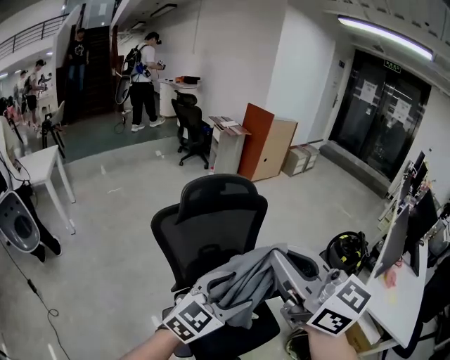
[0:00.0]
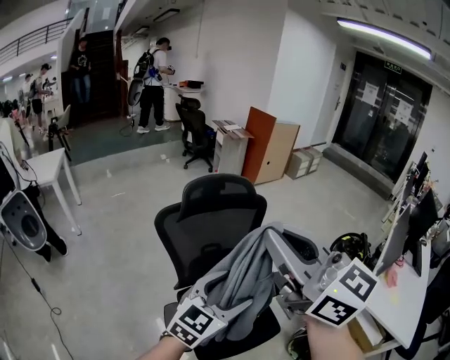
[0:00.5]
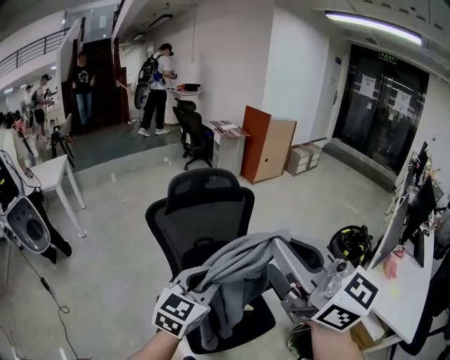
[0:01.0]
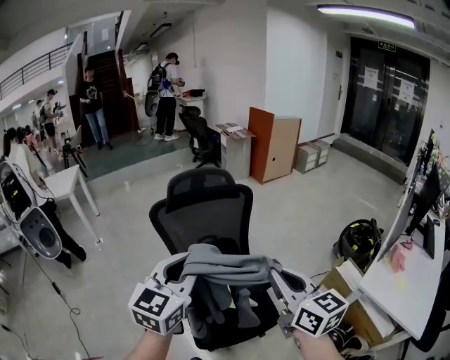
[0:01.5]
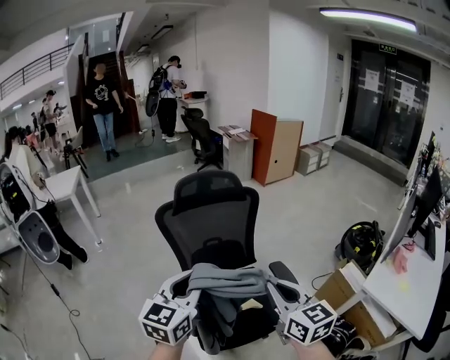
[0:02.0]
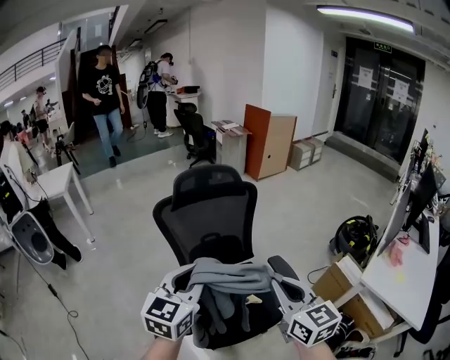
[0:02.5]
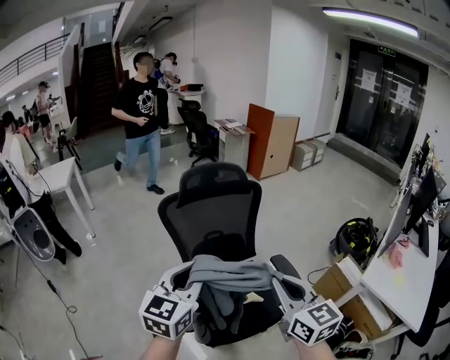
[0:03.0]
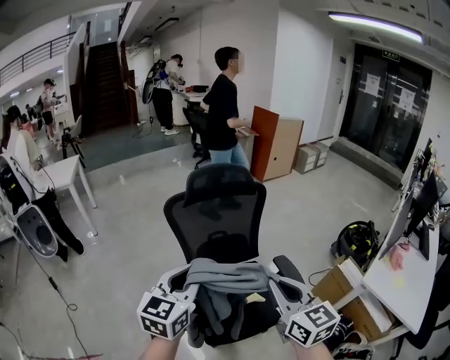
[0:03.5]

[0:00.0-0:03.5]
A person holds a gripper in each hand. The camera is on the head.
0:00.0 to 0:02.0: The right gripper travels downward, to the right and backward by roughly 25 cm; the left gripper shifts about 10 cm backward, changes its angle by approximately 40 degrees, and closes up.
0:02.0 to 0:03.5: Both grippers move to the left, about 5 cm.

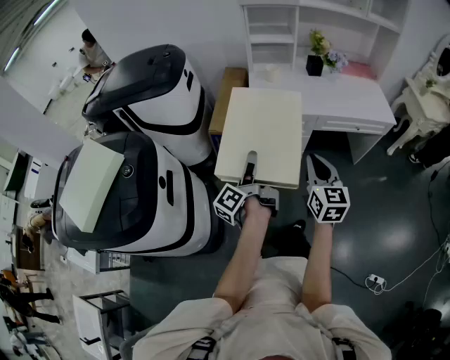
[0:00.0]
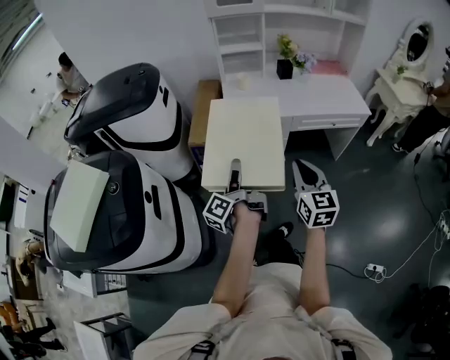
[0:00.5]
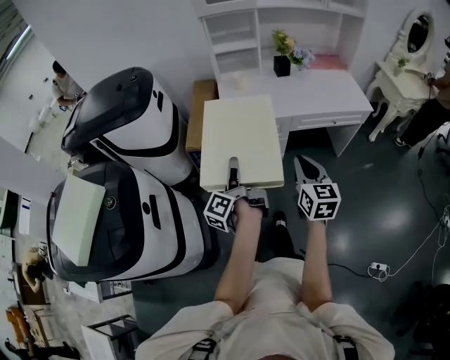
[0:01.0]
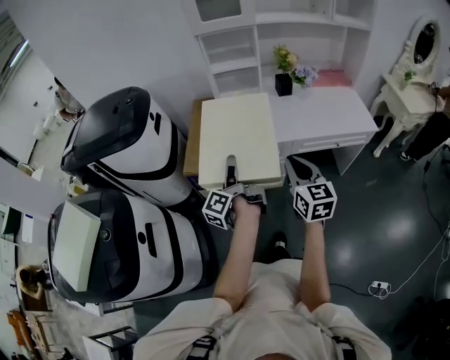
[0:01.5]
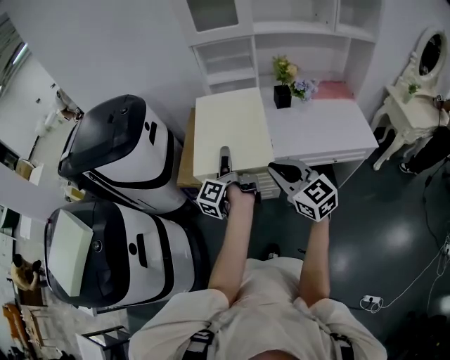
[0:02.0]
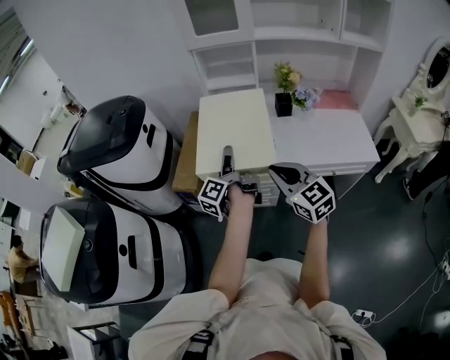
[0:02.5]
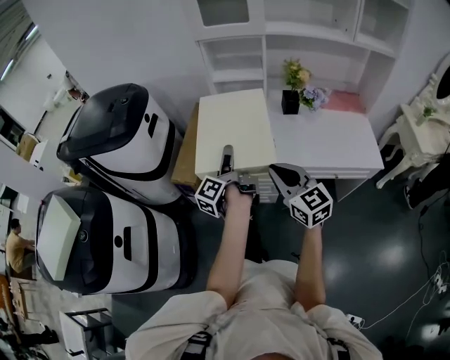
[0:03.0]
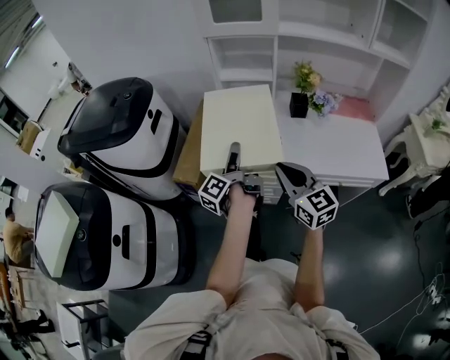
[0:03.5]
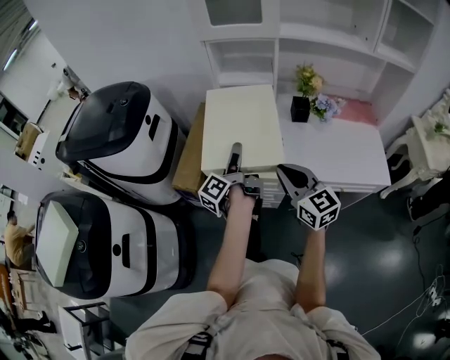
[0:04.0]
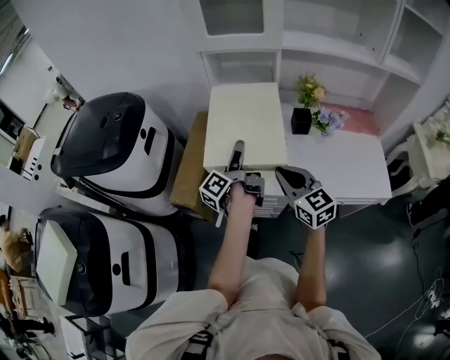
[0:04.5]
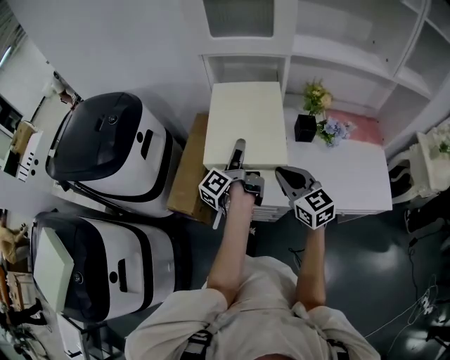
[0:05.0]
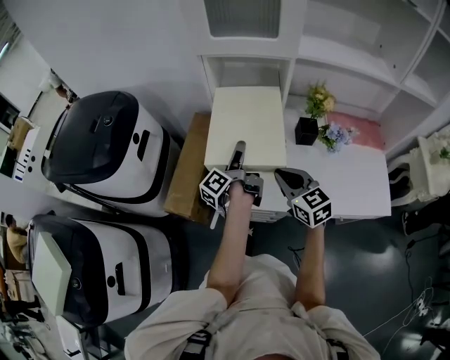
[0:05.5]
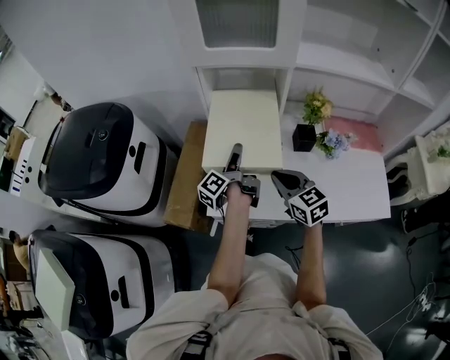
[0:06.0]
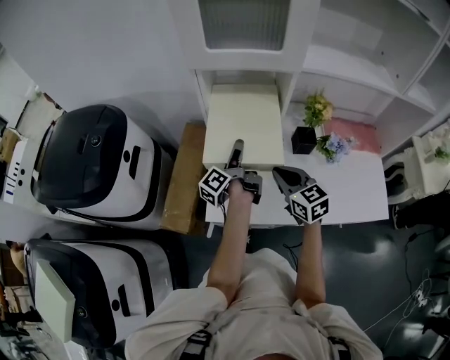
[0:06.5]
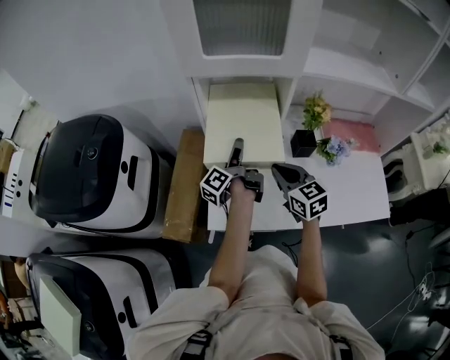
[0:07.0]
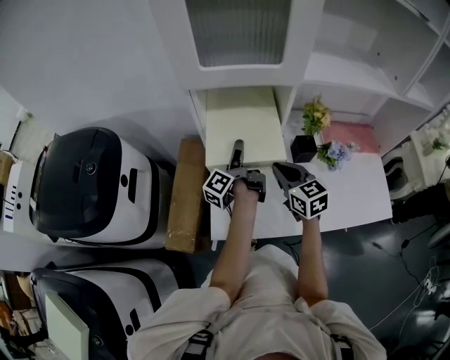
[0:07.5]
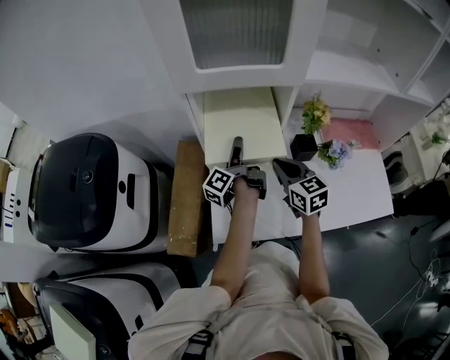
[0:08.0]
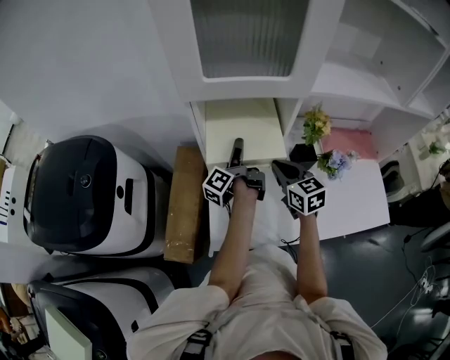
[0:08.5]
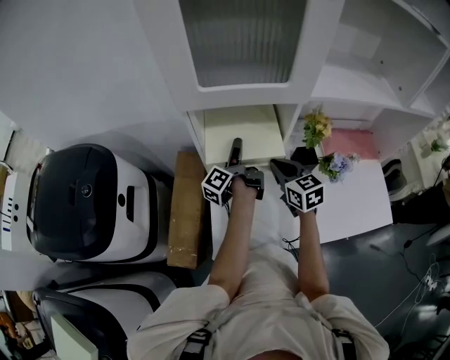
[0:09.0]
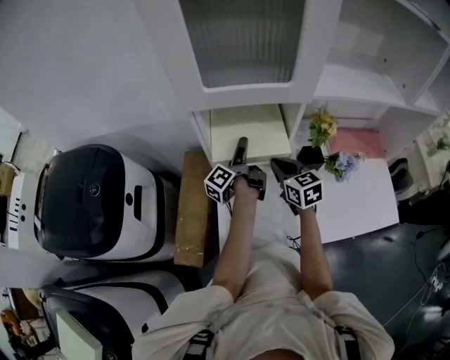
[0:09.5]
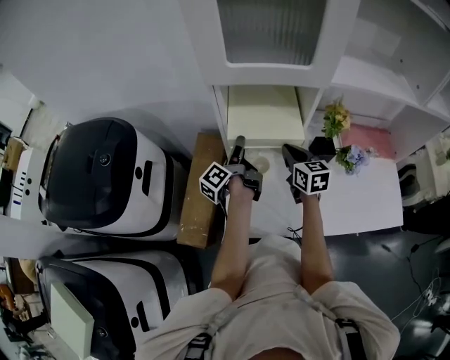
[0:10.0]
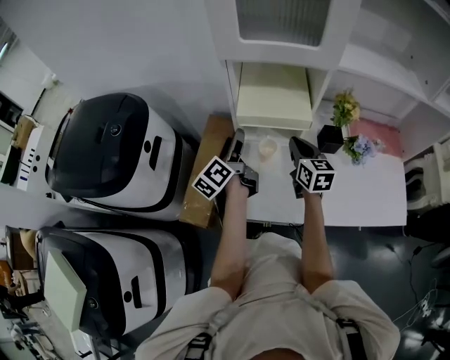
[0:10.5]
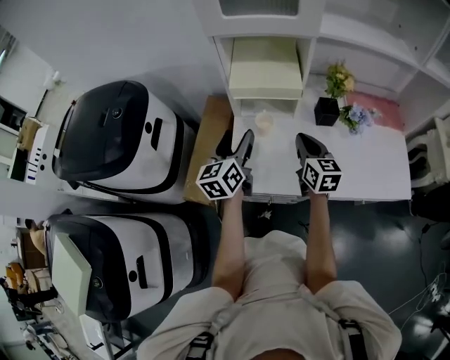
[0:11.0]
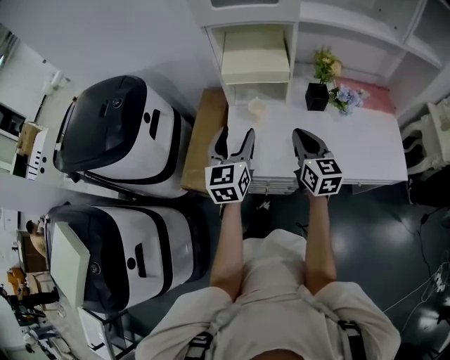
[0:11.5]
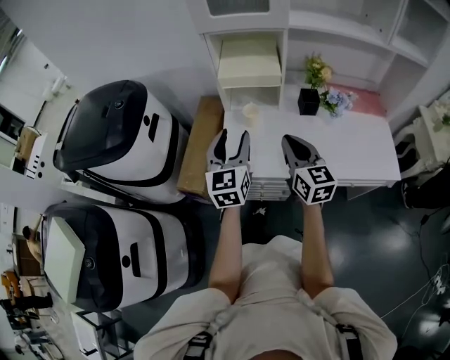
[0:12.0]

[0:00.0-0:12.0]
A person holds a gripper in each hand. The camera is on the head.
0:00.0 to 0:02.0: The left gripper travels forward and to the right by approximately 25 cm. The right gripper travels forward by approximately 15 cm, and turns by roughly 30 degrees.
0:02.0 to 0:04.0: Both grippers travel together forward and to the right, approximately 15 cm.
0:04.0 to 0:06.0: The two grippers go some 20 cm forward.
0:06.0 to 0:08.0: Both grippers move forward, roughly 10 cm.
0:08.0 to 0:10.0: The right gripper moves forward, some 5 cm. Meanwhile the left gripper is displaced to the left by approximately 5 cm.
0:10.0 to 0:12.0: The grippers both shift backward by some 30 cm. The left gripper twists roughly 90 degrees clockwise, seen from behind.

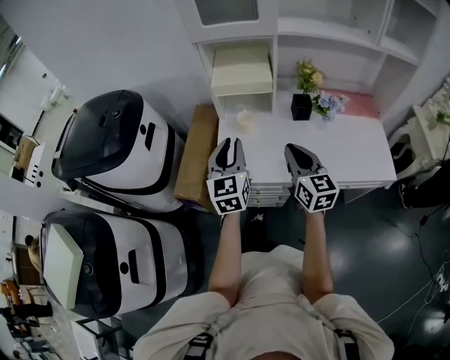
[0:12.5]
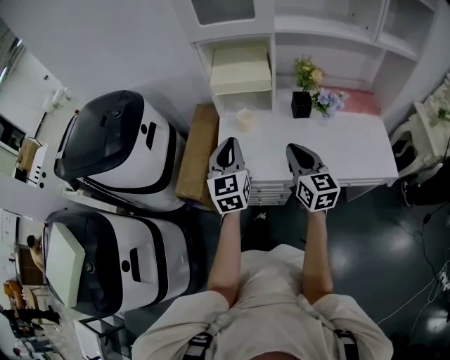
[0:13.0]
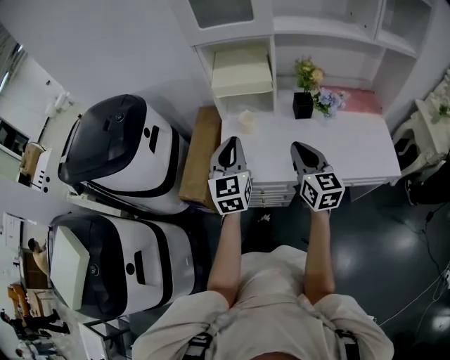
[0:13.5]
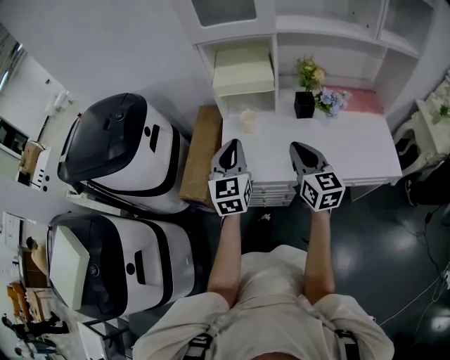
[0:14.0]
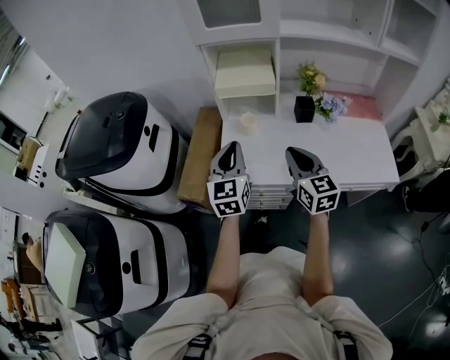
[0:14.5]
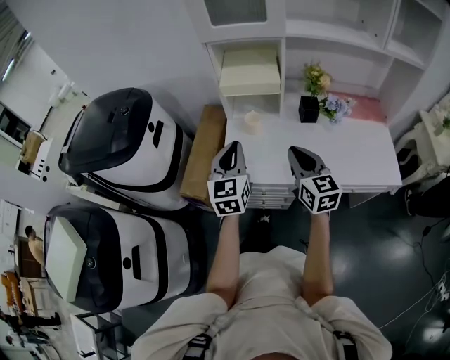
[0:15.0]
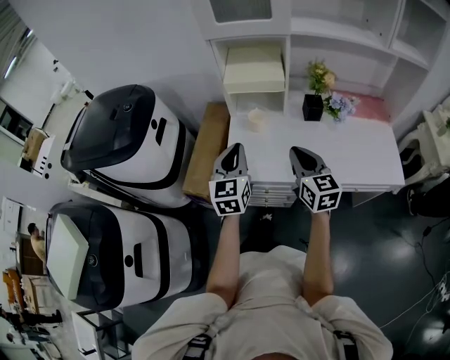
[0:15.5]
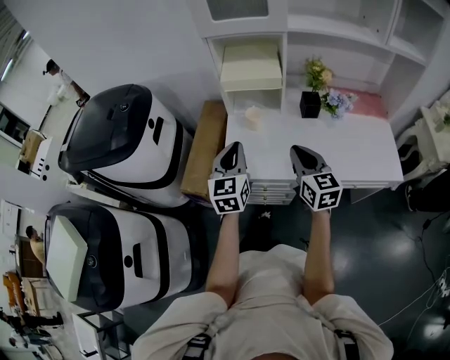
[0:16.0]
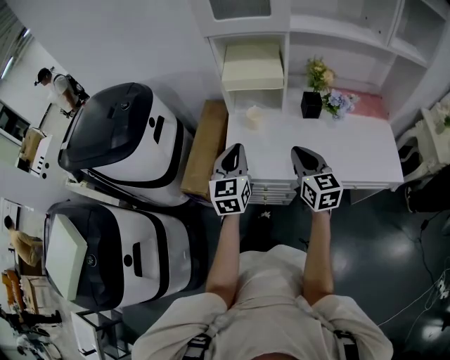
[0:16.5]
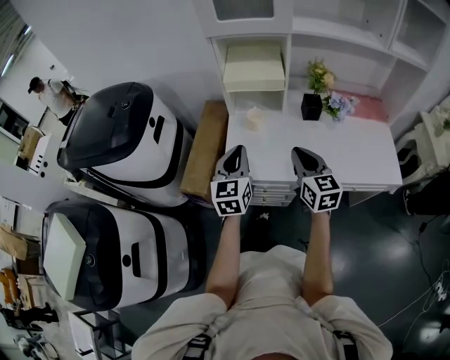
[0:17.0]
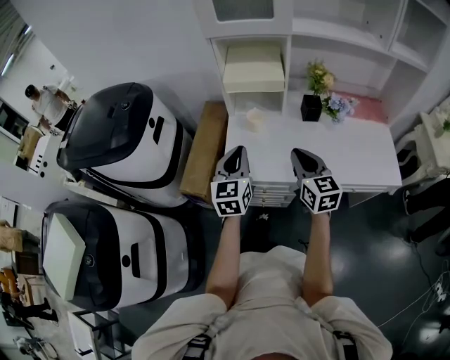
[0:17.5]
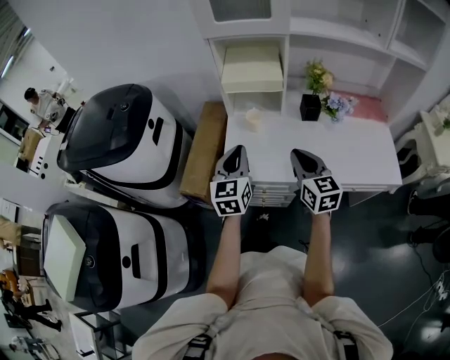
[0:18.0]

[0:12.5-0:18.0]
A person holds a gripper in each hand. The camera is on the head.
0:12.5 to 0:16.0: The grippers move only a little.
0:16.0 to 0:18.0: The two grippers keep their place.

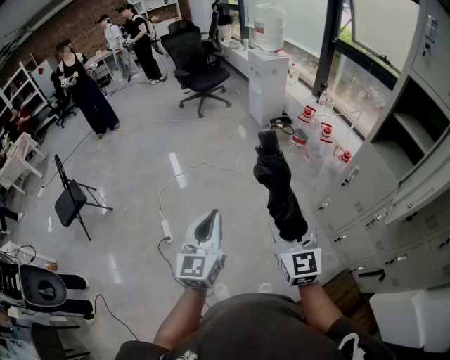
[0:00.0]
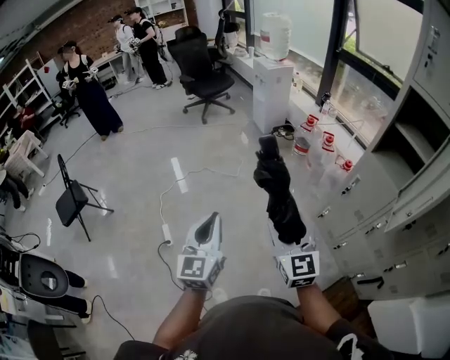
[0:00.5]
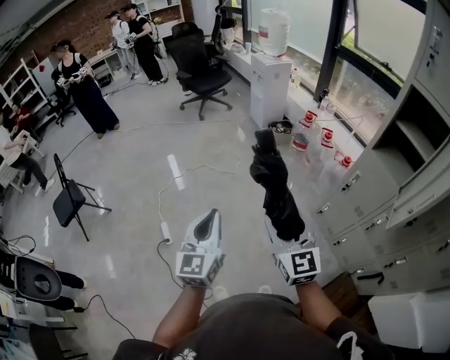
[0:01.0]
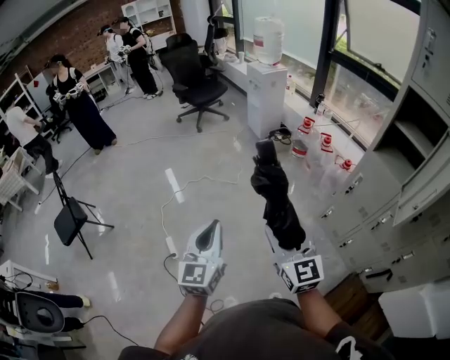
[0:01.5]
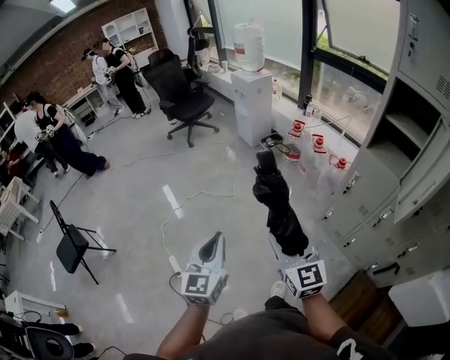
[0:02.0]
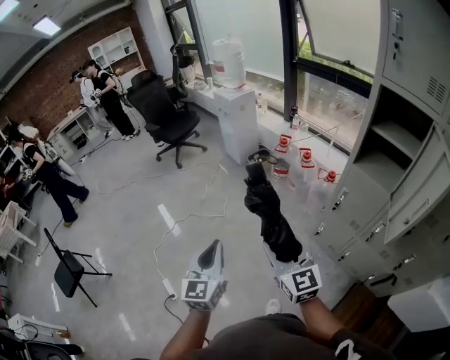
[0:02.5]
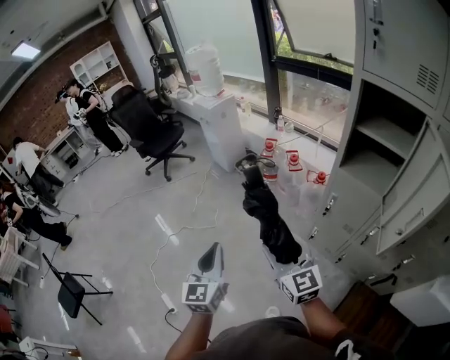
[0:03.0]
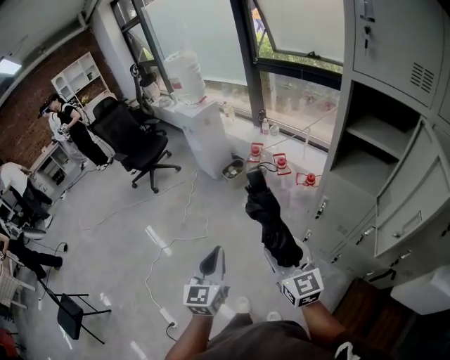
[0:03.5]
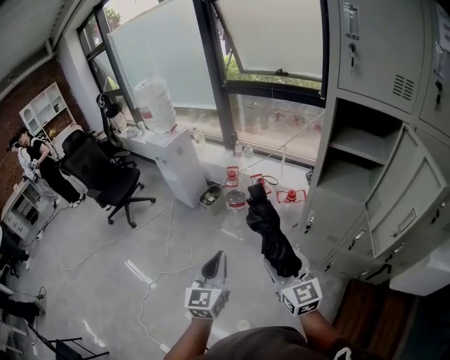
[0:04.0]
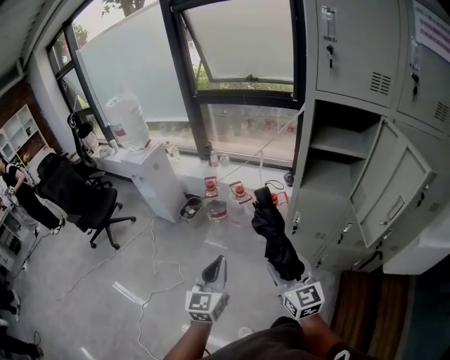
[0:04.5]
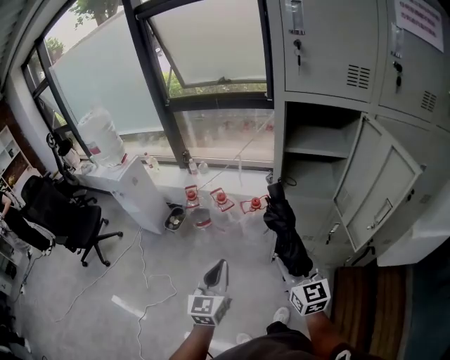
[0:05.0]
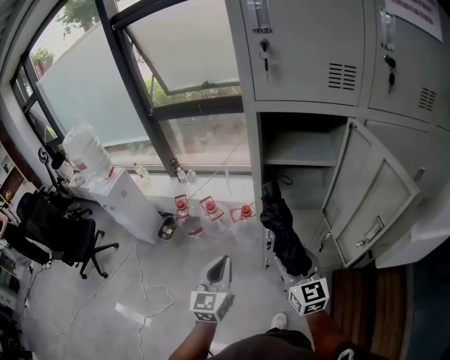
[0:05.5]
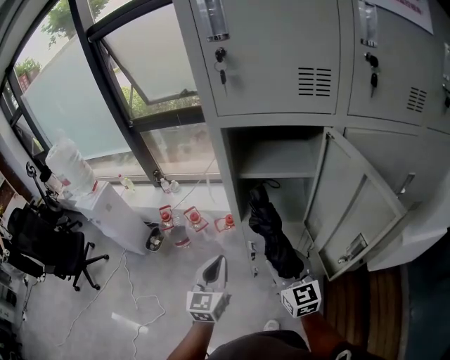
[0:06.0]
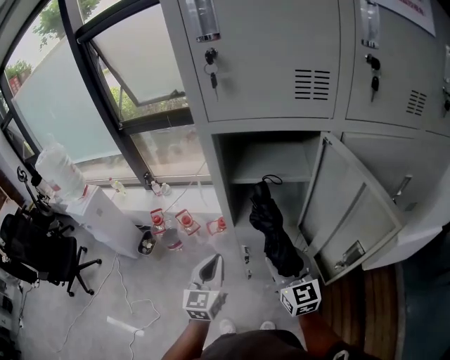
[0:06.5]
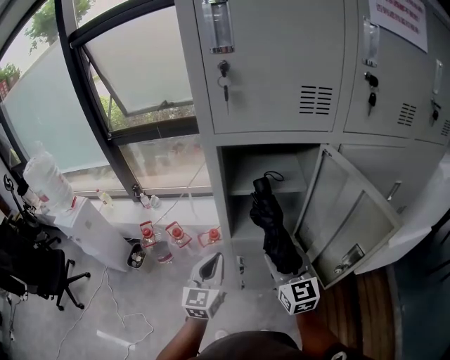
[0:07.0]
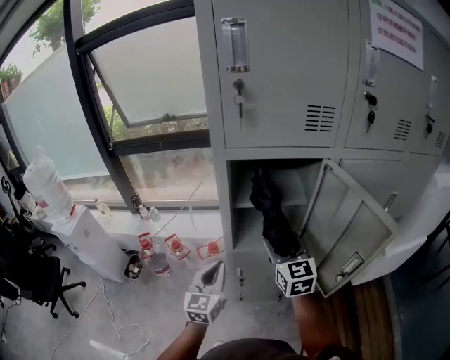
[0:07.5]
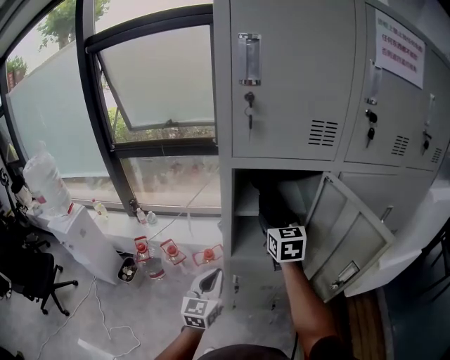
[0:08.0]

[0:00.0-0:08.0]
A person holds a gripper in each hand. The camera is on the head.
0:00.0 to 0:02.0: Both grippers travel together to the left, roughly 5 cm.
0:02.0 to 0:04.0: Both grippers travel together forward and to the right, approximately 35 cm. The right gripper changes its angle by about 20 degrees; the left gripper swivels some 30 degrees.
0:04.0 to 0:06.0: The two grippers go about 30 cm to the right and forward. The left gripper turns by some 20 degrees; the right gripper rotates roughly 30 degrees.
0:06.0 to 0:08.0: The left gripper is displaced forward by some 5 cm, while the right gripper goes some 25 cm forward and upward.
